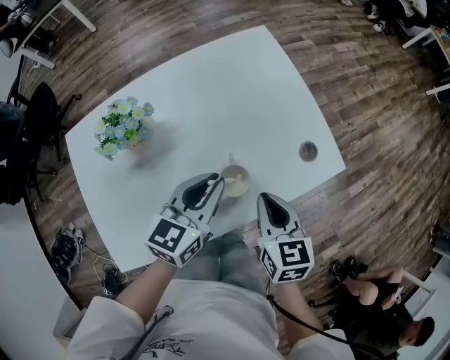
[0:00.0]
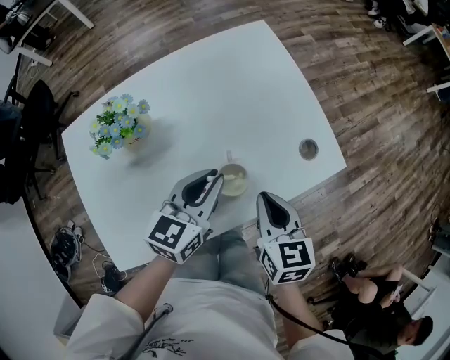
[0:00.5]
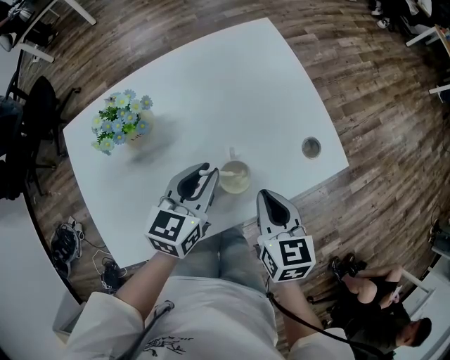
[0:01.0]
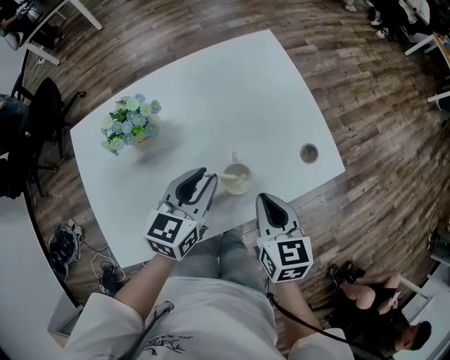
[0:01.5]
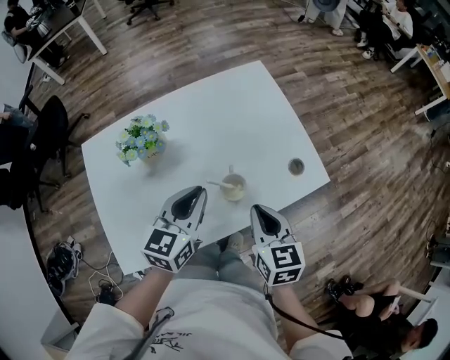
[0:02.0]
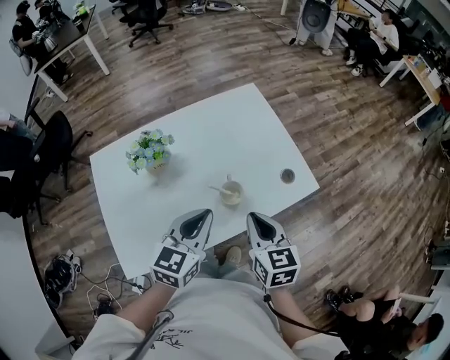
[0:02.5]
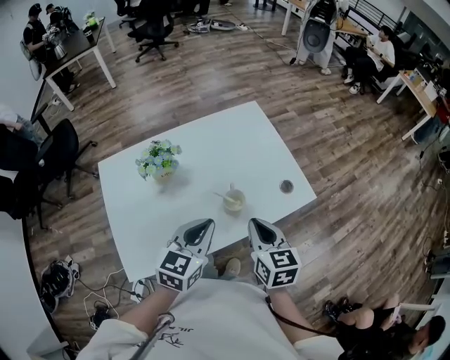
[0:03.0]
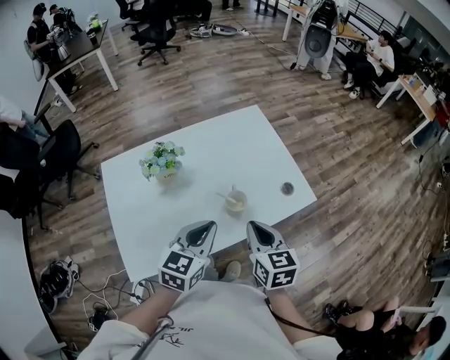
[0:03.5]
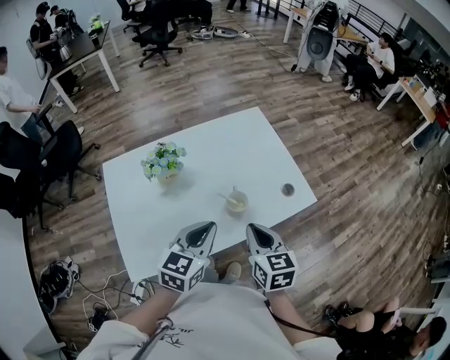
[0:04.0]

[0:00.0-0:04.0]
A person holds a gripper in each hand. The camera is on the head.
0:00.0 to 0:02.0: The left gripper shifts by approximately 5 cm. Meanwhile the right gripper shifts by some 5 cm.
0:02.0 to 0:04.0: The left gripper goes roughly 10 cm backward. Meanwhile the right gripper is displaced upward and backward by some 10 cm.

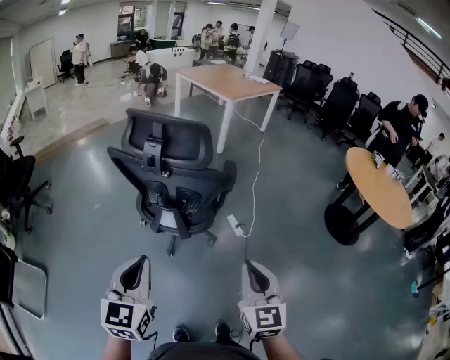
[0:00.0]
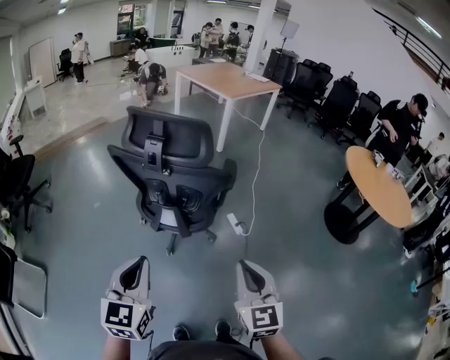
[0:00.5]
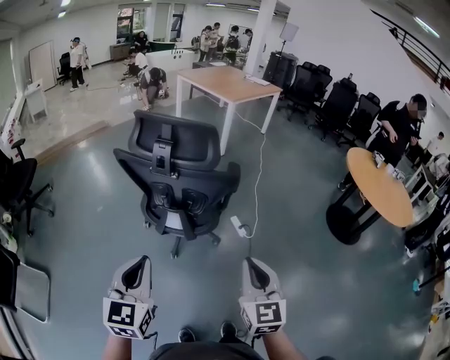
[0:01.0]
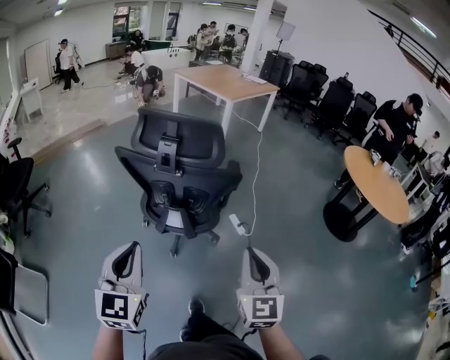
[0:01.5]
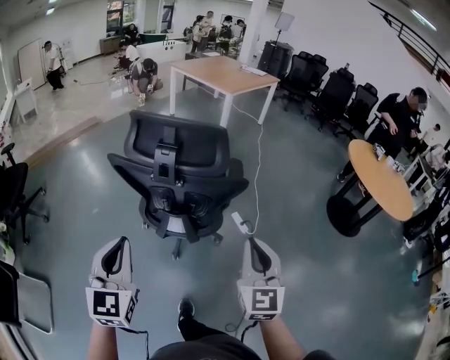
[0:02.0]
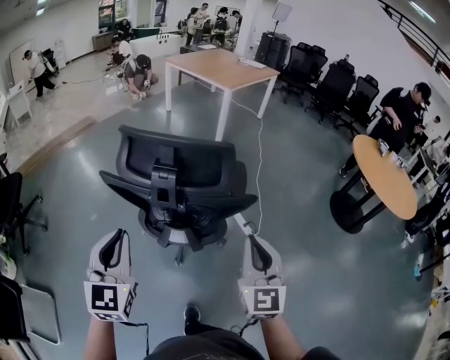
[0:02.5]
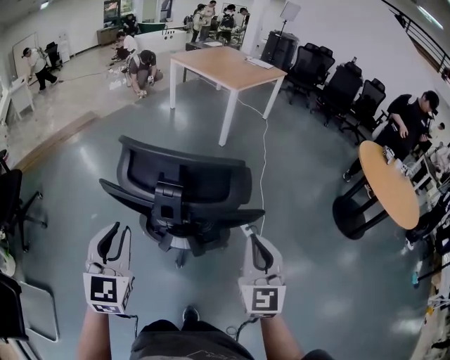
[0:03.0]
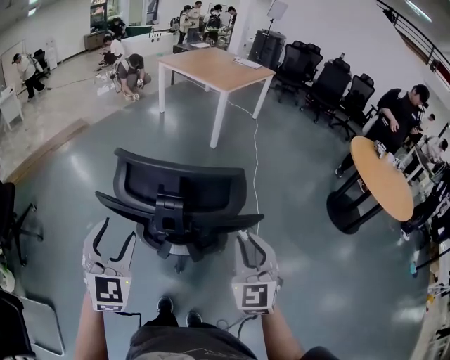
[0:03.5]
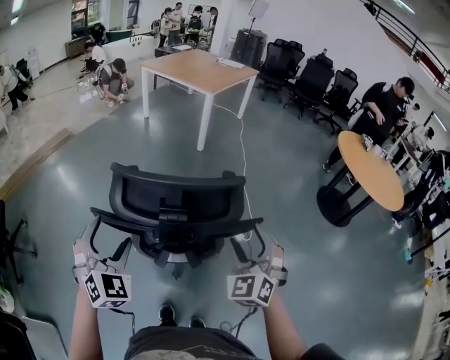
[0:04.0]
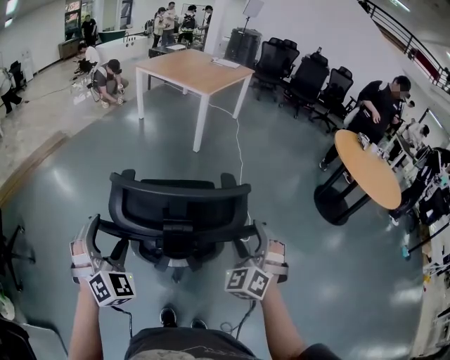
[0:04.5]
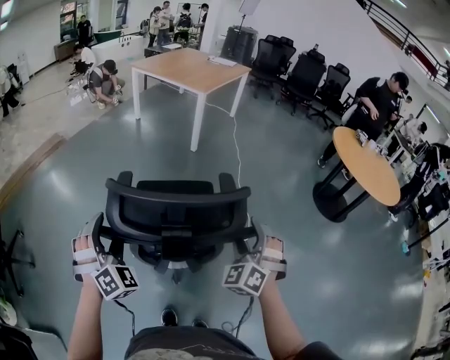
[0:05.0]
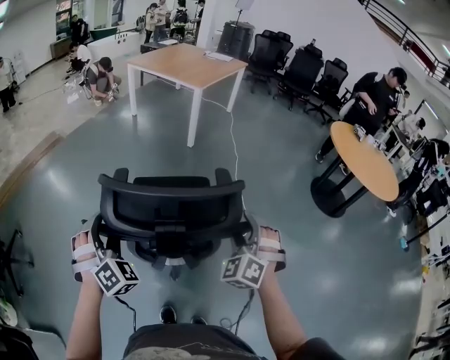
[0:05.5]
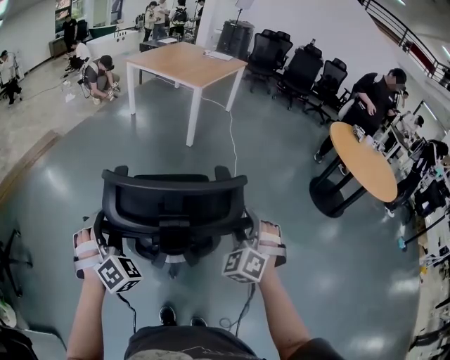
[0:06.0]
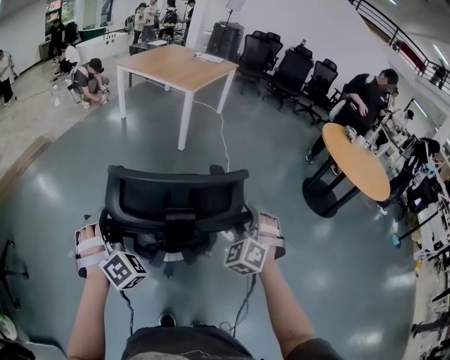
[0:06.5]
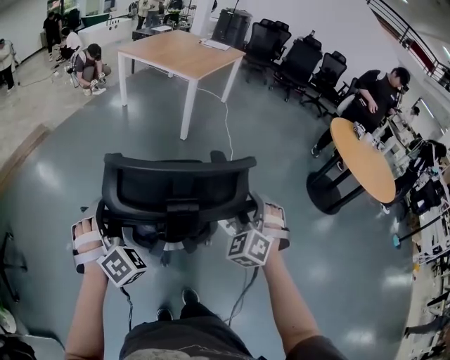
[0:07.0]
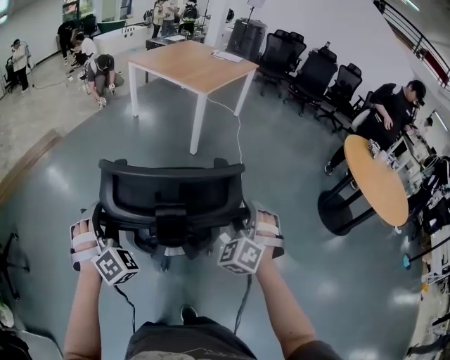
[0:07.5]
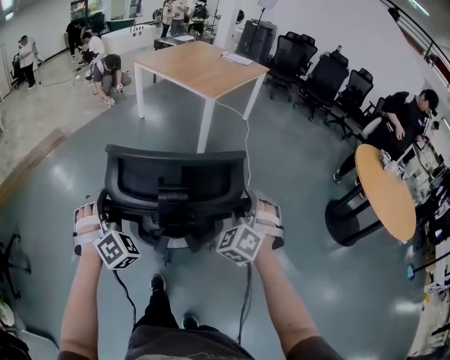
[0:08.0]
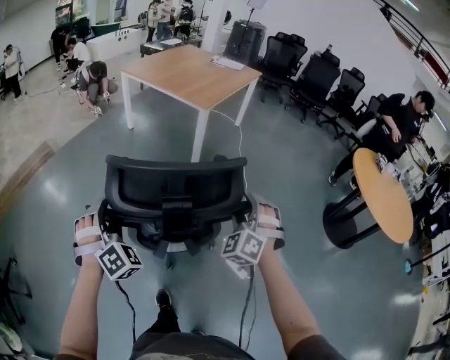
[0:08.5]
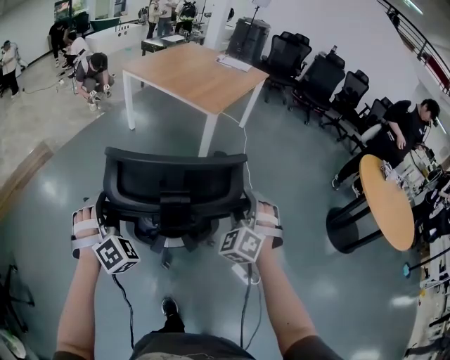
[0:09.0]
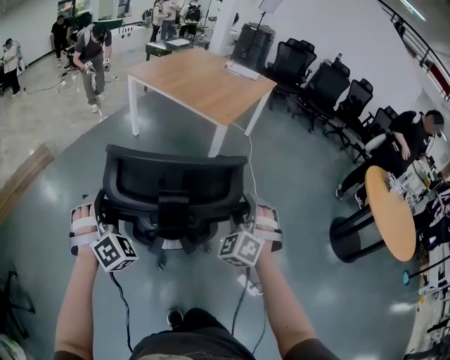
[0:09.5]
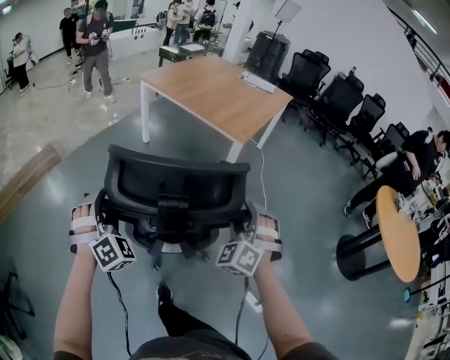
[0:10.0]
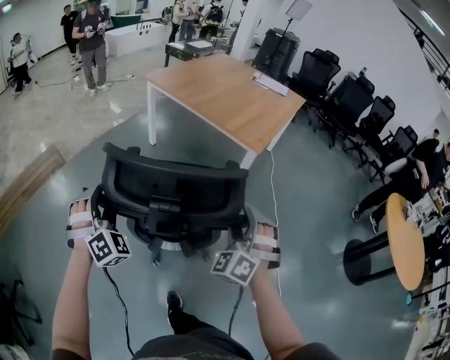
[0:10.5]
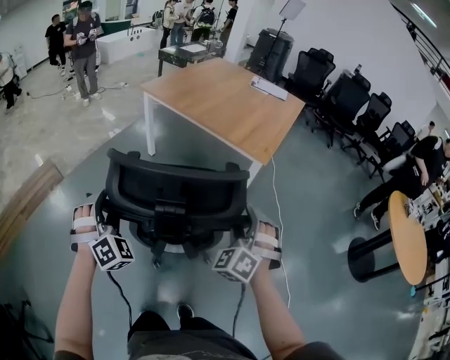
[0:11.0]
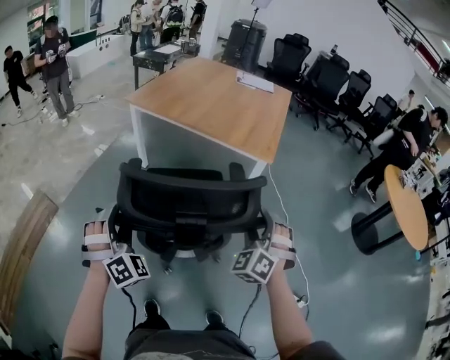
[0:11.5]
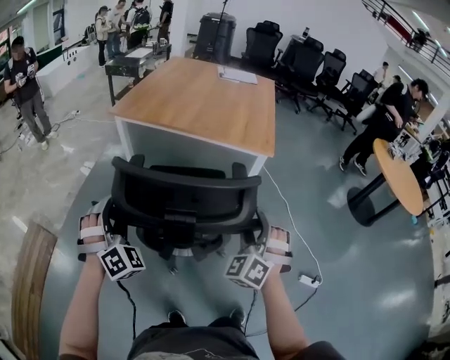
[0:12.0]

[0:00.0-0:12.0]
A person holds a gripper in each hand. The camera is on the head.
0:00.0 to 0:02.0: The left gripper travels to the left and forward by some 15 cm; the right gripper shifts roughly 10 cm forward and to the left.
0:02.0 to 0:04.0: The two grippers go about 20 cm forward. The left gripper rotates about 40 degrees, and opens its fingers, while the right gripper changes its angle by some 40 degrees, and opens.
0:04.0 to 0:06.0: Both grippers travel together forward, approximately 5 cm. The left gripper swivels about 20 degrees.
0:06.0 to 0:08.0: Both grippers travel together forward, roughly 25 cm.
0:08.0 to 0:10.0: The grippers both shift forward and to the left by roughly 35 cm.
0:10.0 to 0:12.0: The left gripper changes place by approximately 40 cm, and changes its angle by roughly 30 degrees. The right gripper ends up roughly 30 cm from where it was, and rotates about 30 degrees.

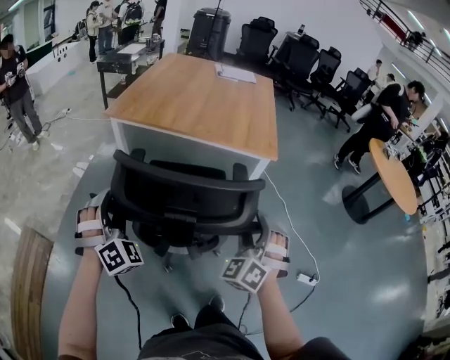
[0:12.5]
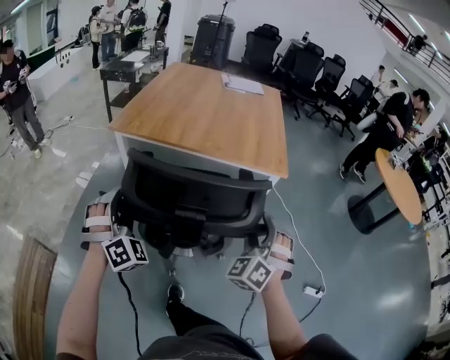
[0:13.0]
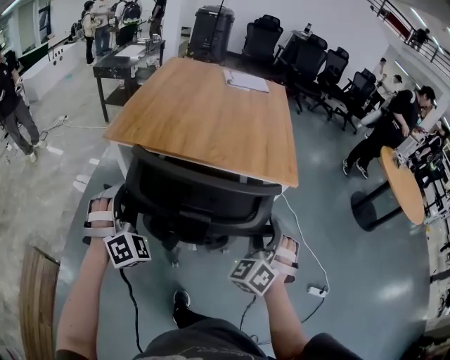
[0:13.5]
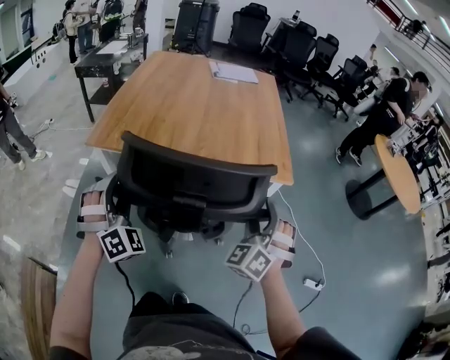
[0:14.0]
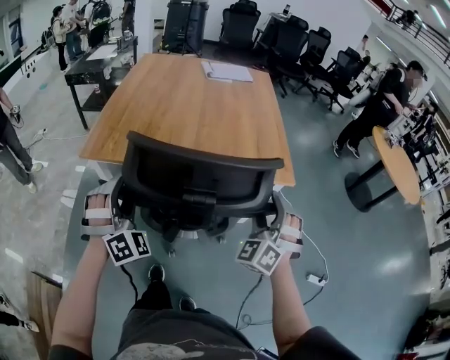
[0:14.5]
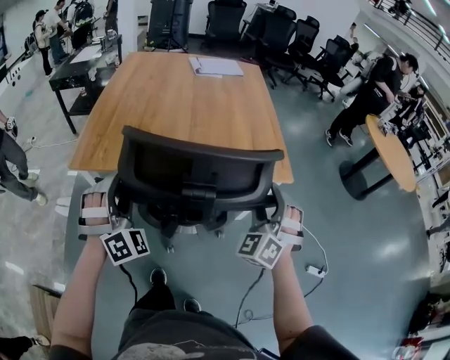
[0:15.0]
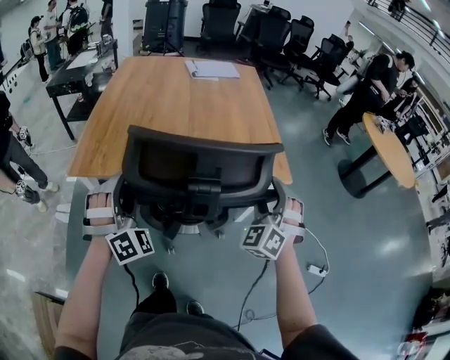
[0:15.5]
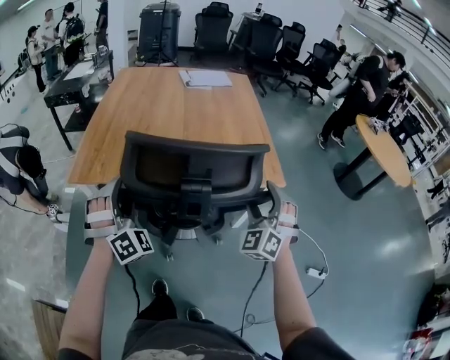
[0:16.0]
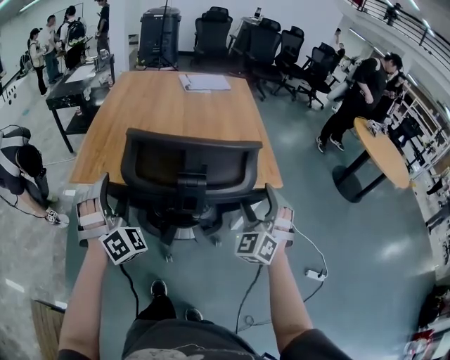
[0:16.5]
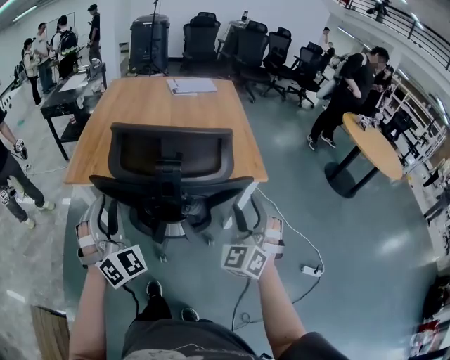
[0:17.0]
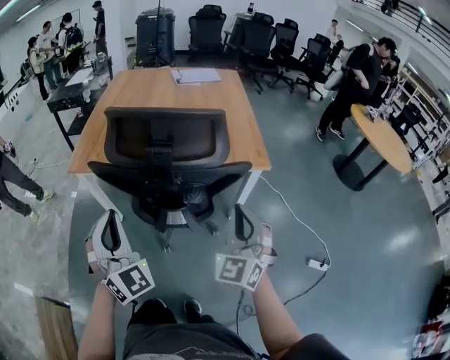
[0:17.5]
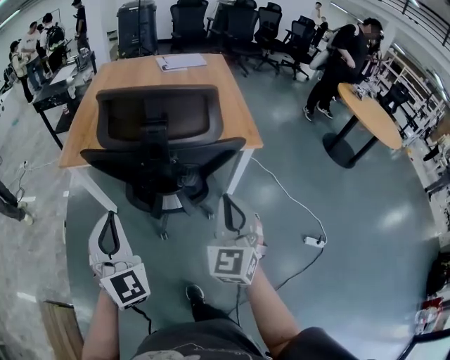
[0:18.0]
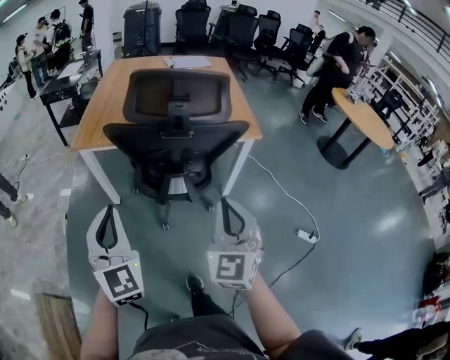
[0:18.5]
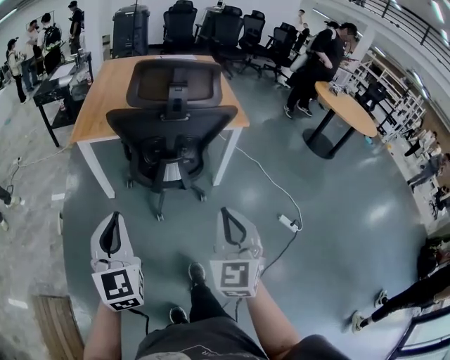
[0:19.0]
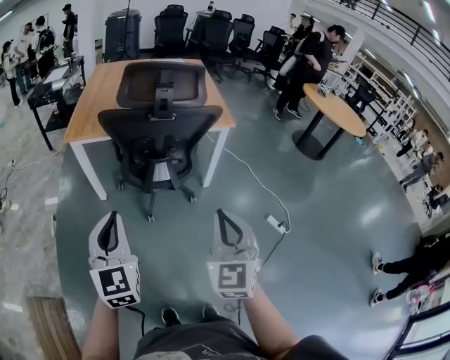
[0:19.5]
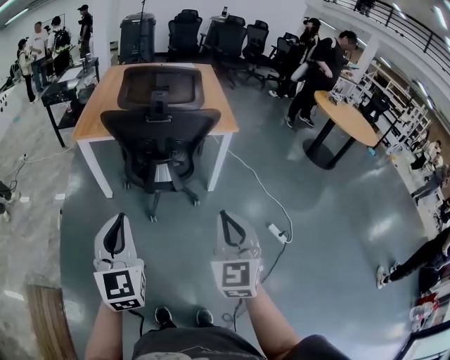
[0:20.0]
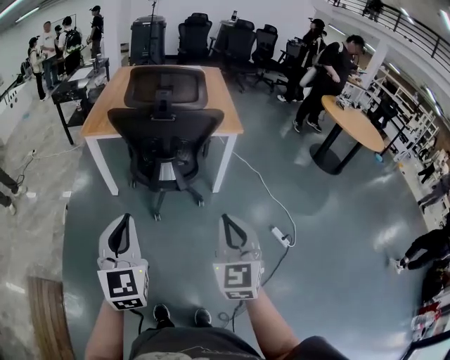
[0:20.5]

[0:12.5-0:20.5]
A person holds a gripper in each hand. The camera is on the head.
0:12.5 to 0:14.5: Both grippers travel together forward, about 25 cm.
0:14.5 to 0:16.5: The left gripper moves forward, approximately 5 cm, and opens.
0:16.5 to 0:18.5: Both grippers travel together backward, some 25 cm. The left gripper rolls counterclockwise, seen from behind, by some 50 degrees, and closes its fingers. Meanwhile the right gripper turns by roughly 30 degrees, and closes up.
0:18.5 to 0:20.5: The two grippers go approximately 20 cm backward and to the right.

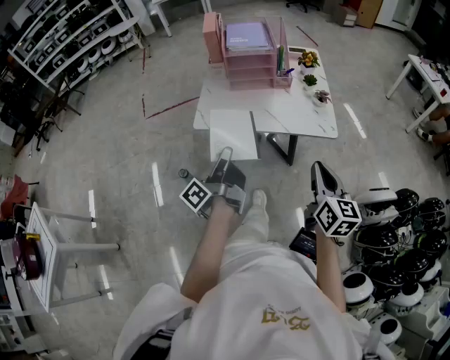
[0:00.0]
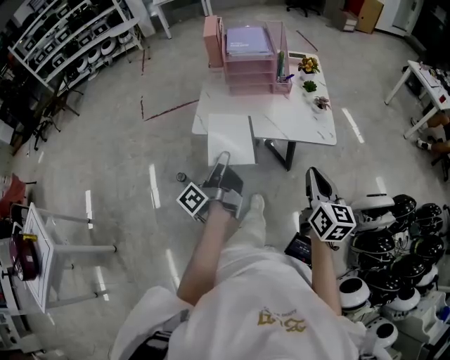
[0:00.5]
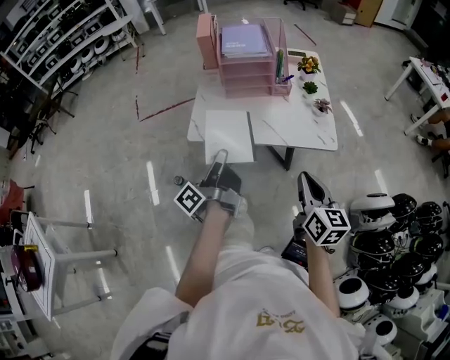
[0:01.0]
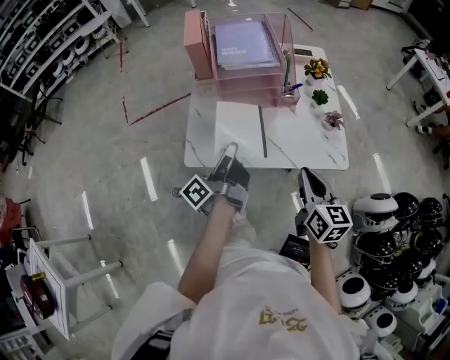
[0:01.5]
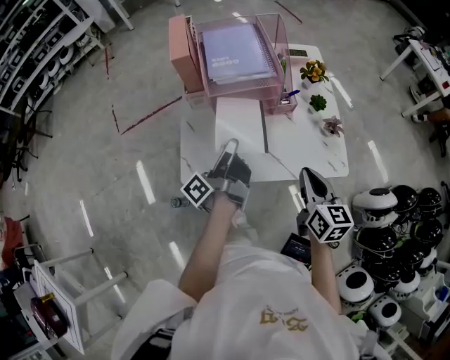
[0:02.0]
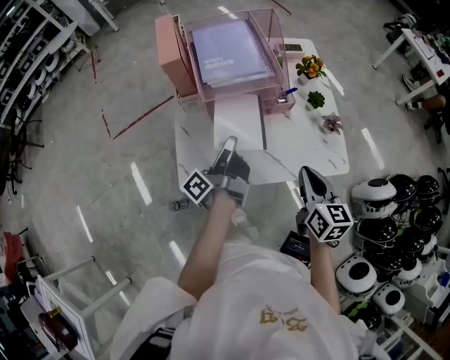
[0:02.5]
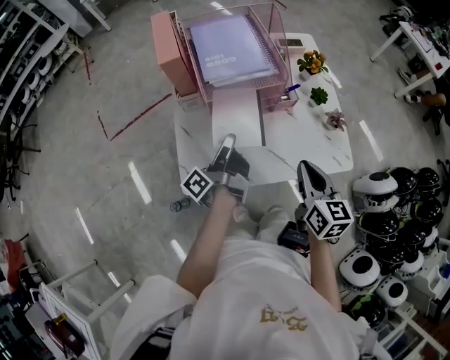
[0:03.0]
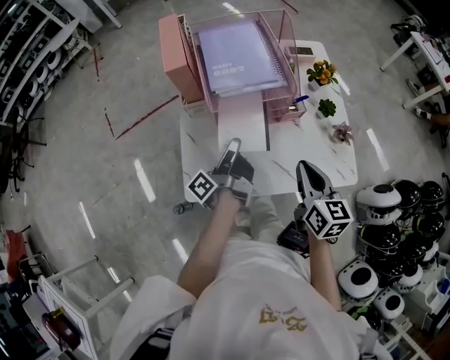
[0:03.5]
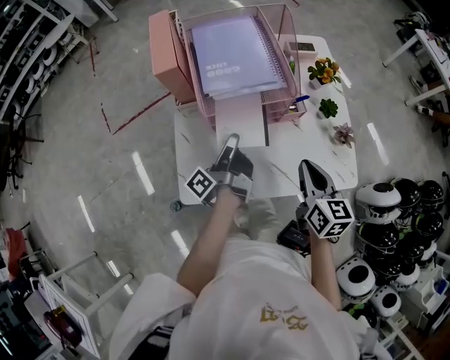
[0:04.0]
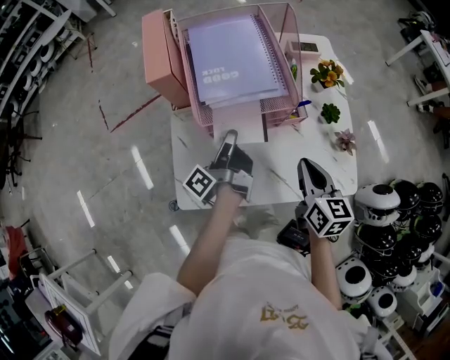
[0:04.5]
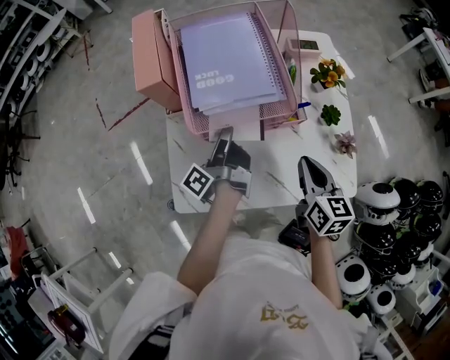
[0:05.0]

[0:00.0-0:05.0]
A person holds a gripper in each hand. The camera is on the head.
0:00.0 to 0:02.5: The right gripper moves about 30 cm.
0:02.5 to 0:05.0: The right gripper ends up some 15 cm from where it was.
